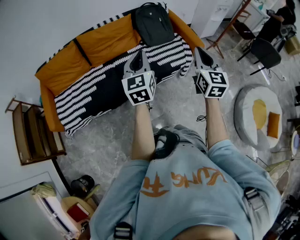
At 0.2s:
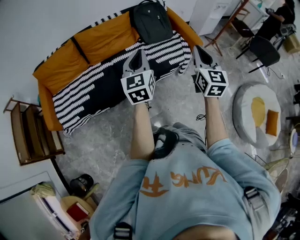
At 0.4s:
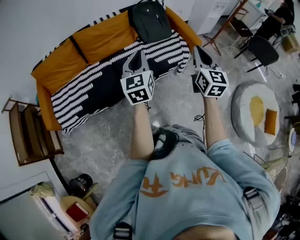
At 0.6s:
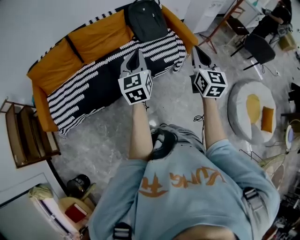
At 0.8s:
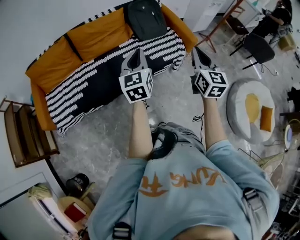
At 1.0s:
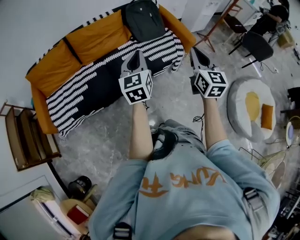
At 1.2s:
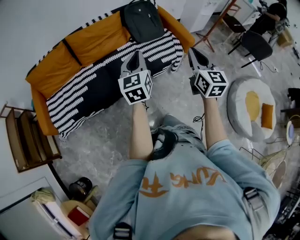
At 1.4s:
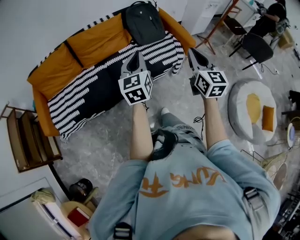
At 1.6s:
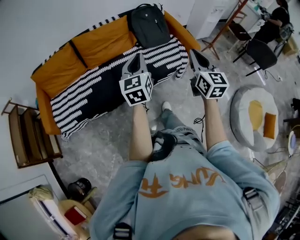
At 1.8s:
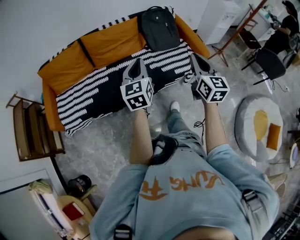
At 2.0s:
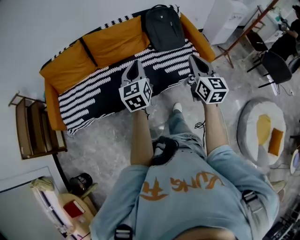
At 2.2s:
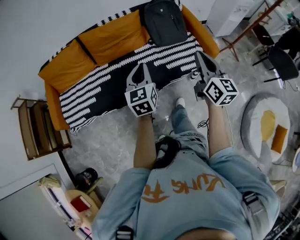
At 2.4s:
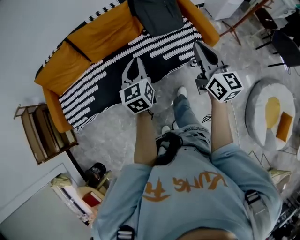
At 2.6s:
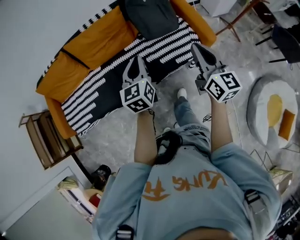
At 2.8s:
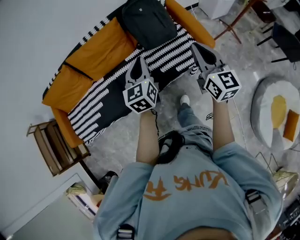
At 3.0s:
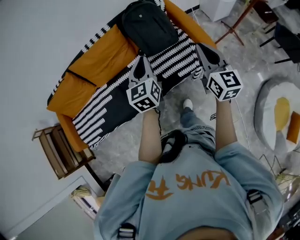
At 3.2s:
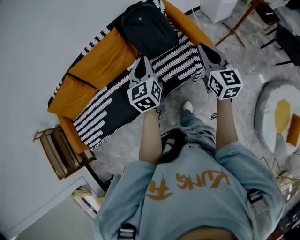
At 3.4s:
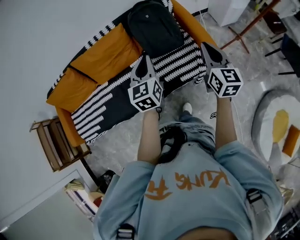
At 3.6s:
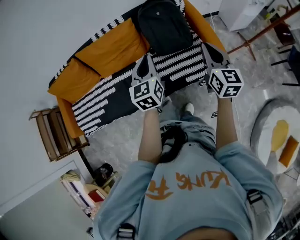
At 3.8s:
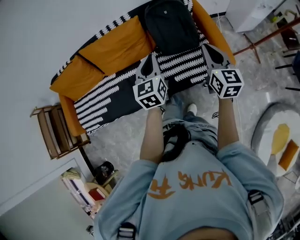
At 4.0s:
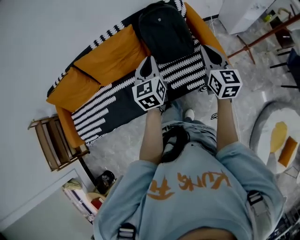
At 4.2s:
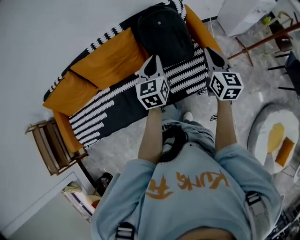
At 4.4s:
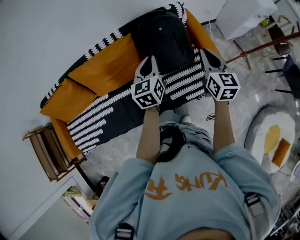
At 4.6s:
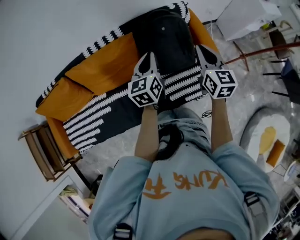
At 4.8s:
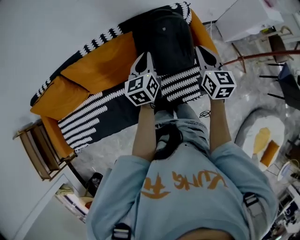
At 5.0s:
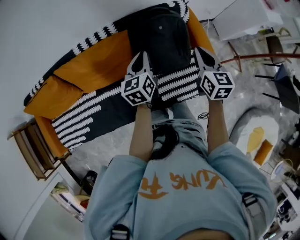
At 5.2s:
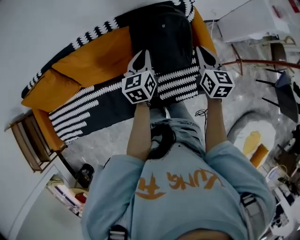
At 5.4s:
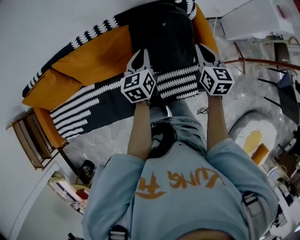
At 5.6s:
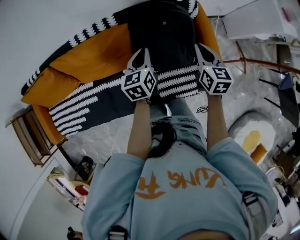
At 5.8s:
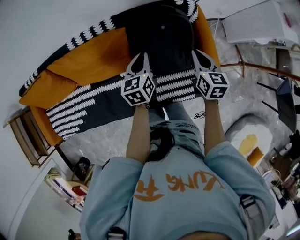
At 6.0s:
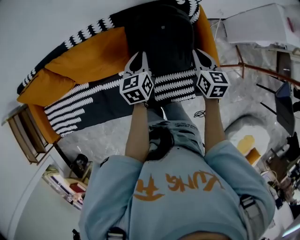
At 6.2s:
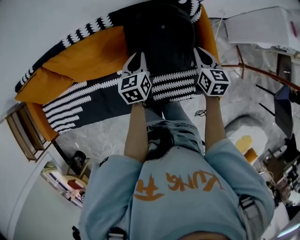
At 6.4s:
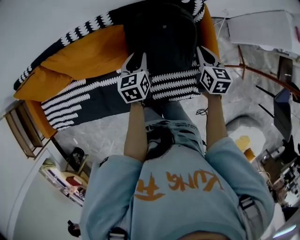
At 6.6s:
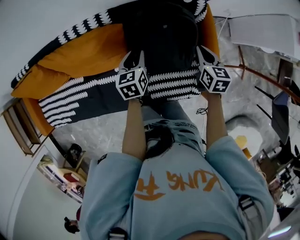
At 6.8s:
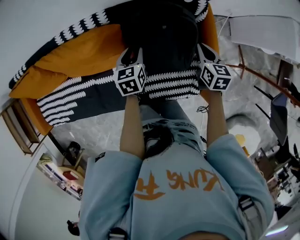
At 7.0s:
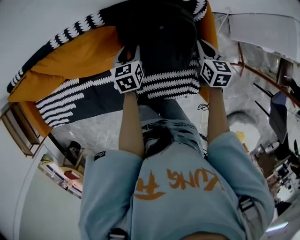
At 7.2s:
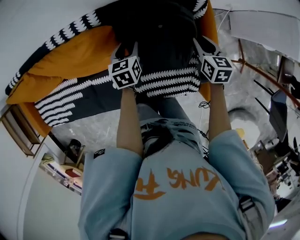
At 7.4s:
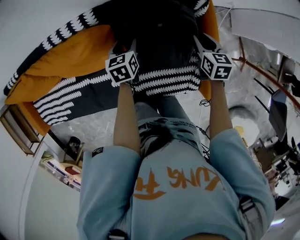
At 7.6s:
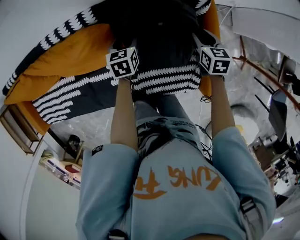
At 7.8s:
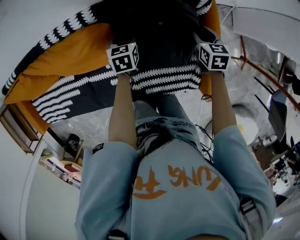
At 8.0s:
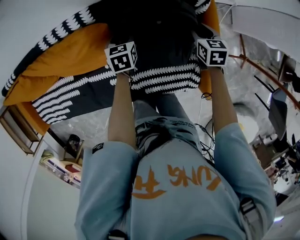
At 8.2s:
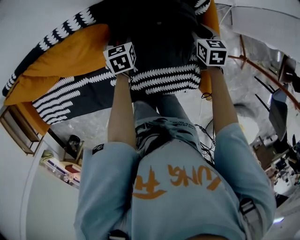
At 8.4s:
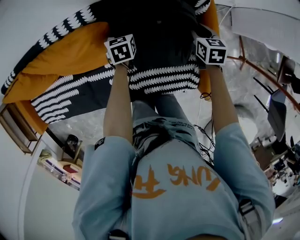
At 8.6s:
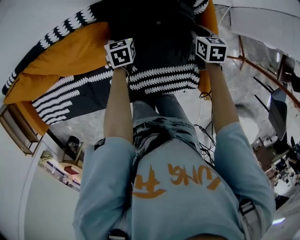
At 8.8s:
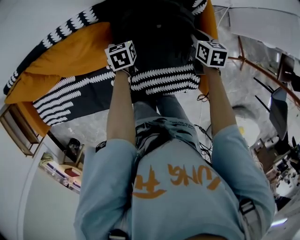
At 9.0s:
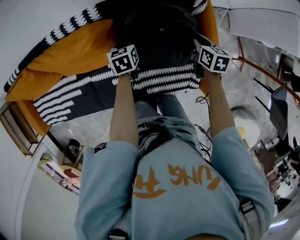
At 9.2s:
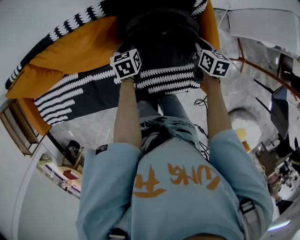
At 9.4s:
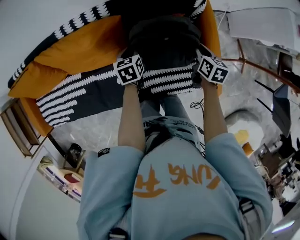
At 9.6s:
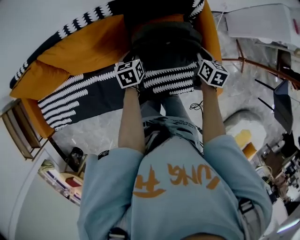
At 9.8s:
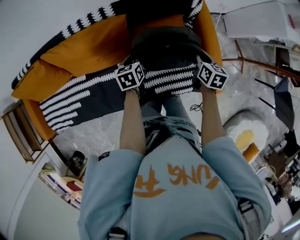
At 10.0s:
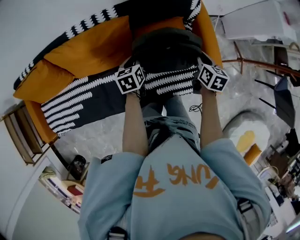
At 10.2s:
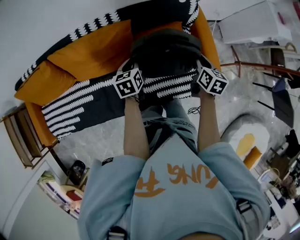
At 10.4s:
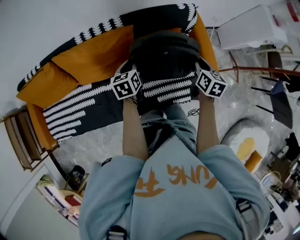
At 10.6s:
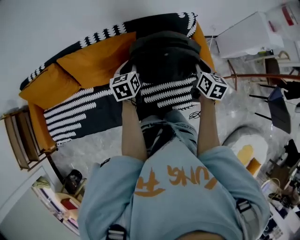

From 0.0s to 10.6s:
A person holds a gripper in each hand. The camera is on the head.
From 0.0s to 1.6s: There are only small adjustments of the grippers.
From 1.6s to 3.0s: Both grippers move forward and to the right, approximately 35 cm.
From 3.0s to 4.6s: The grippers both shift forward by some 30 cm.
From 4.6s to 6.0s: Both grippers move downward and forward, approximately 15 cm.
From 6.0s to 7.6s: Both grippers travel together downward and forward, some 20 cm. The left gripper changes its angle by approximately 20 degrees, and opens. Meanwhile the right gripper opens.
From 7.6s to 9.0s: The right gripper changes place by some 5 cm; the left gripper ends up roughly 5 cm from where it was, and closes up.
From 9.0s to 10.6s: Both grippers move upward and backward, approximately 25 cm. The right gripper rotates about 20 degrees.

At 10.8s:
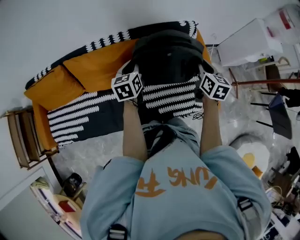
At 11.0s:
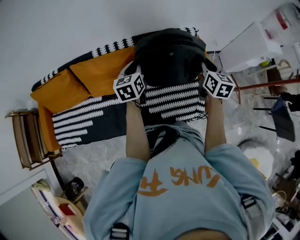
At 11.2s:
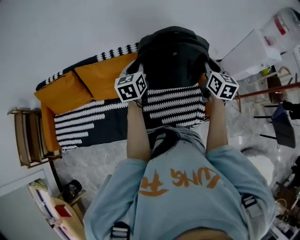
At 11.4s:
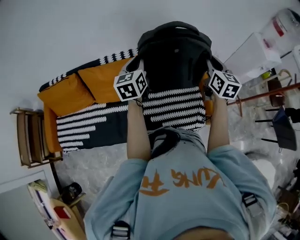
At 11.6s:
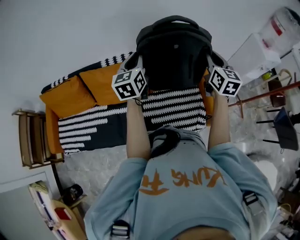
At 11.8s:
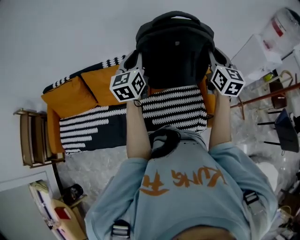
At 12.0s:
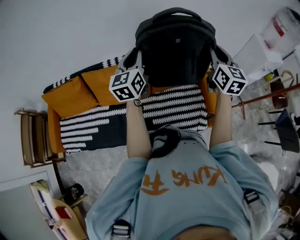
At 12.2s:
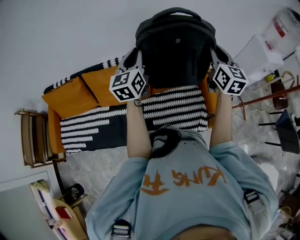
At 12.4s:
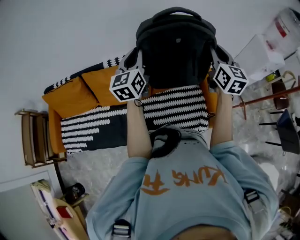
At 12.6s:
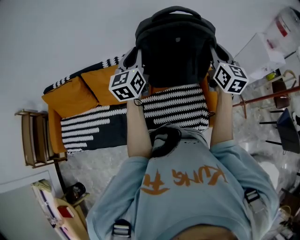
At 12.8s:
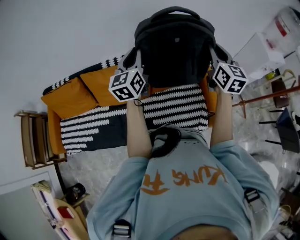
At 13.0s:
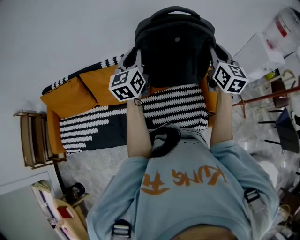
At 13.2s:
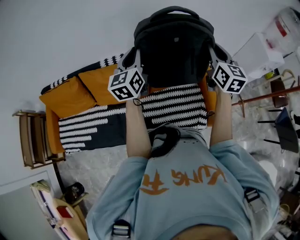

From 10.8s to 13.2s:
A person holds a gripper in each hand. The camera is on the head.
From 10.8s to 12.0s: Both grippers move upward, approximately 20 cm. The left gripper turns by approximately 30 degrees. Meanwhile the right gripper swivels roughly 30 degrees.
From 12.0s to 13.2s: The grippers stay close to where they were, moving slightly.

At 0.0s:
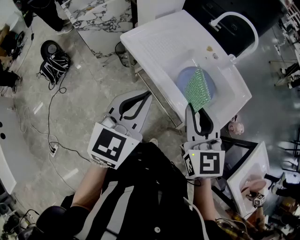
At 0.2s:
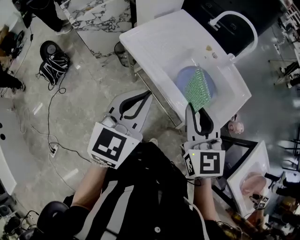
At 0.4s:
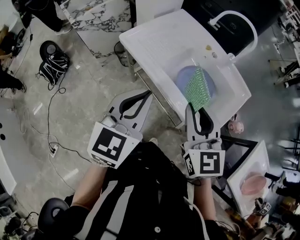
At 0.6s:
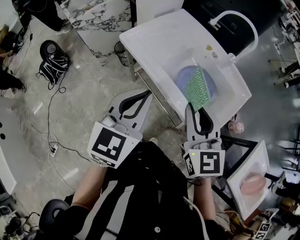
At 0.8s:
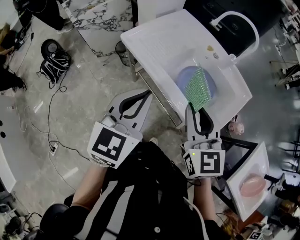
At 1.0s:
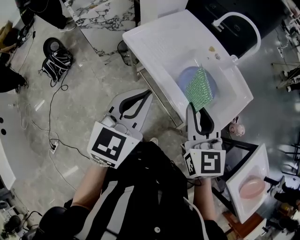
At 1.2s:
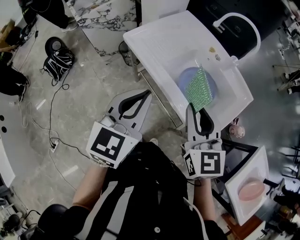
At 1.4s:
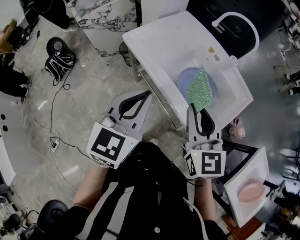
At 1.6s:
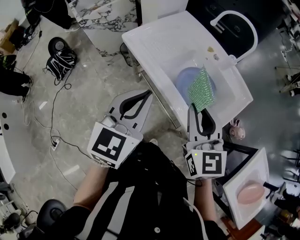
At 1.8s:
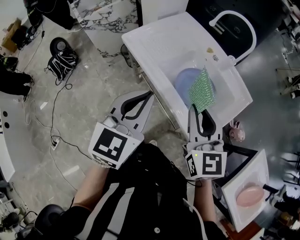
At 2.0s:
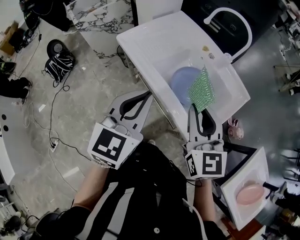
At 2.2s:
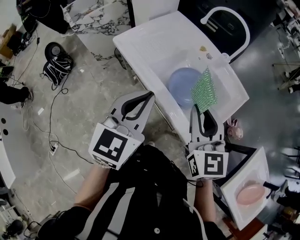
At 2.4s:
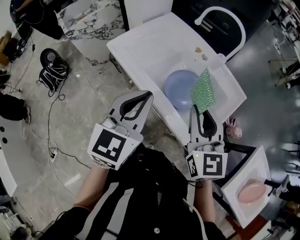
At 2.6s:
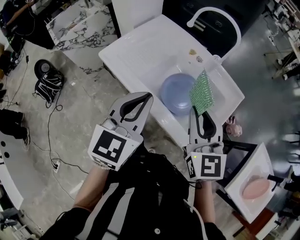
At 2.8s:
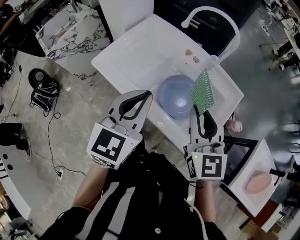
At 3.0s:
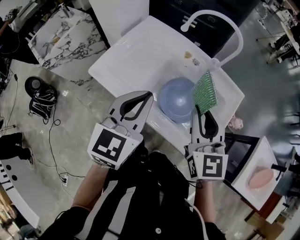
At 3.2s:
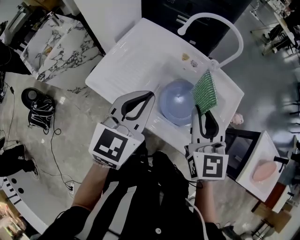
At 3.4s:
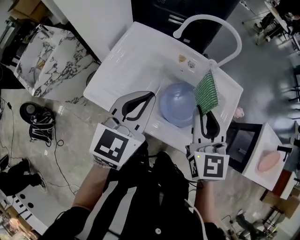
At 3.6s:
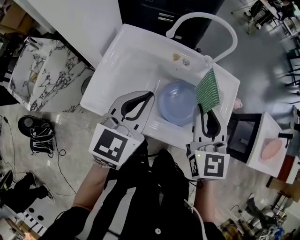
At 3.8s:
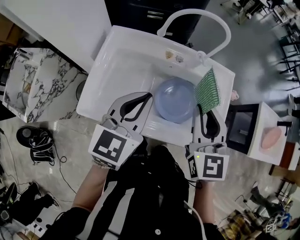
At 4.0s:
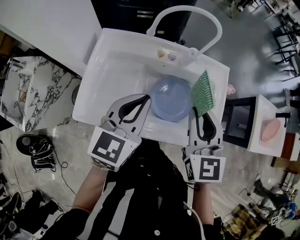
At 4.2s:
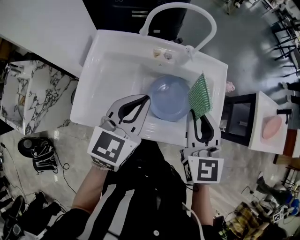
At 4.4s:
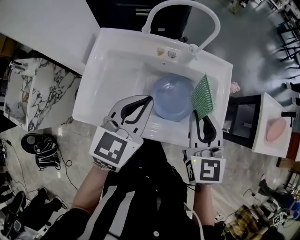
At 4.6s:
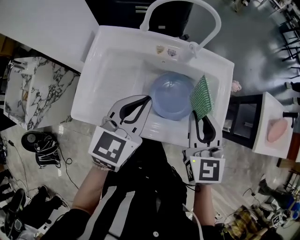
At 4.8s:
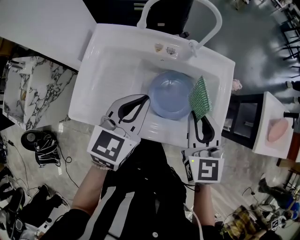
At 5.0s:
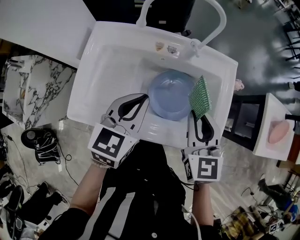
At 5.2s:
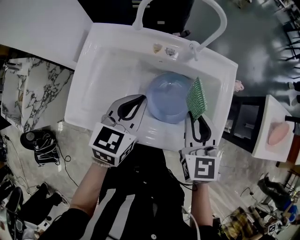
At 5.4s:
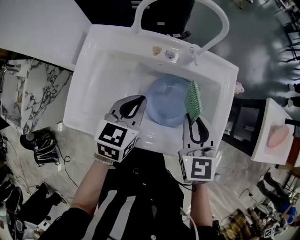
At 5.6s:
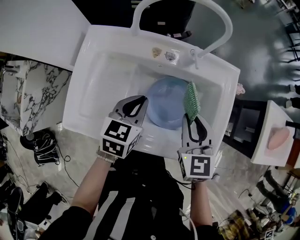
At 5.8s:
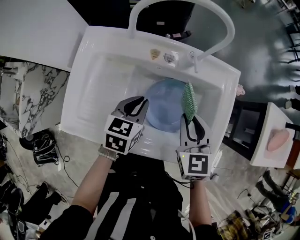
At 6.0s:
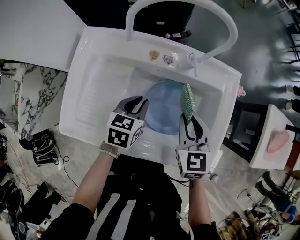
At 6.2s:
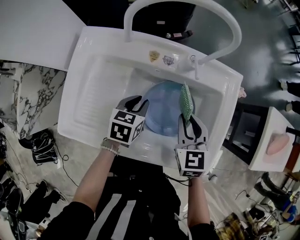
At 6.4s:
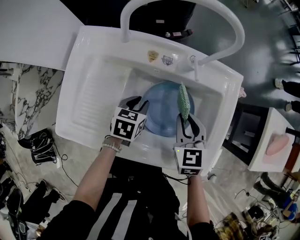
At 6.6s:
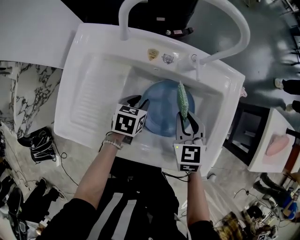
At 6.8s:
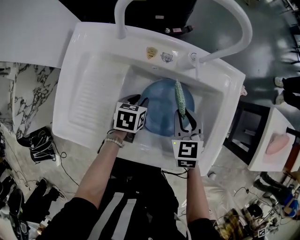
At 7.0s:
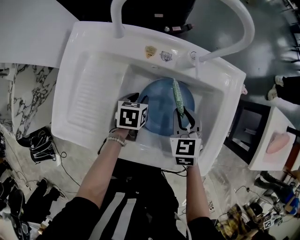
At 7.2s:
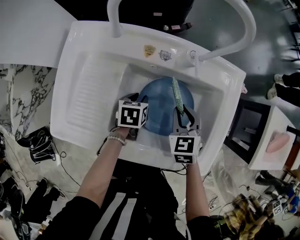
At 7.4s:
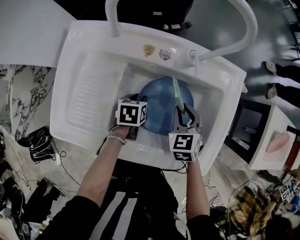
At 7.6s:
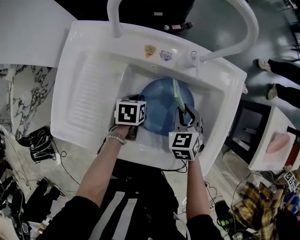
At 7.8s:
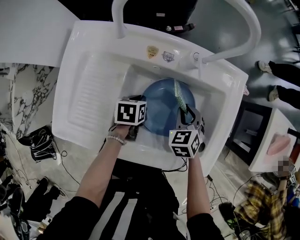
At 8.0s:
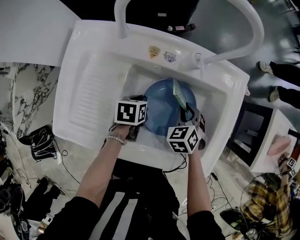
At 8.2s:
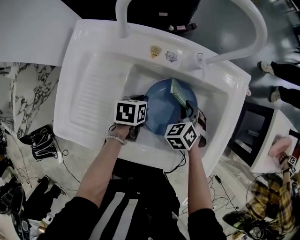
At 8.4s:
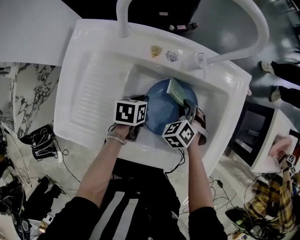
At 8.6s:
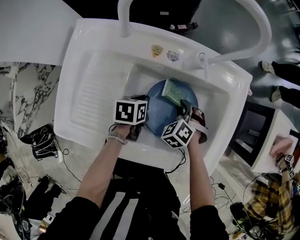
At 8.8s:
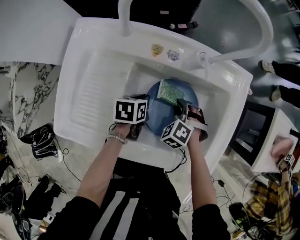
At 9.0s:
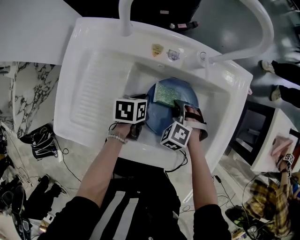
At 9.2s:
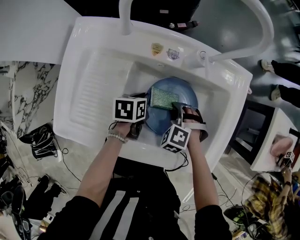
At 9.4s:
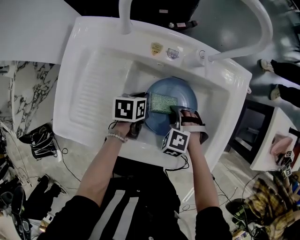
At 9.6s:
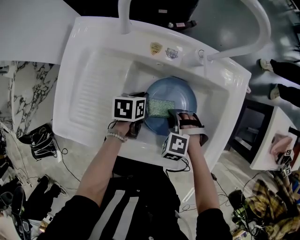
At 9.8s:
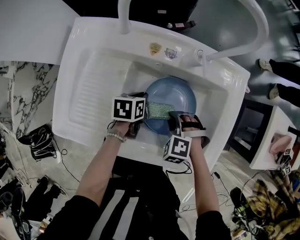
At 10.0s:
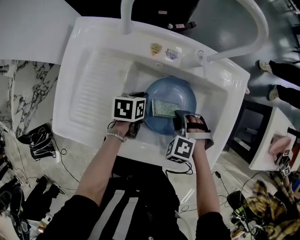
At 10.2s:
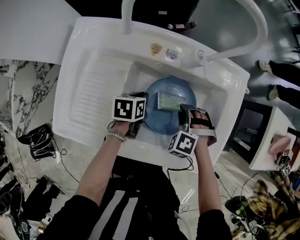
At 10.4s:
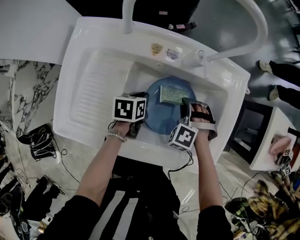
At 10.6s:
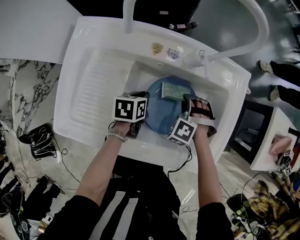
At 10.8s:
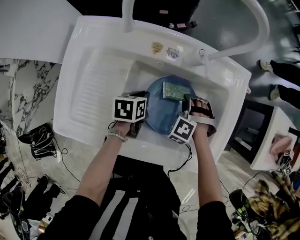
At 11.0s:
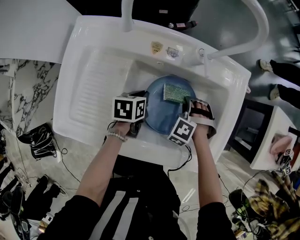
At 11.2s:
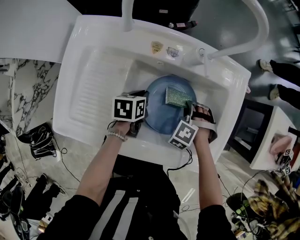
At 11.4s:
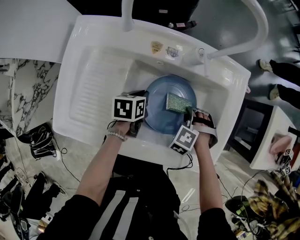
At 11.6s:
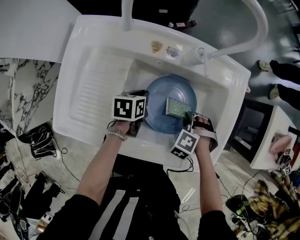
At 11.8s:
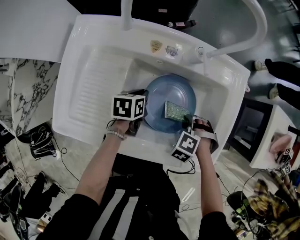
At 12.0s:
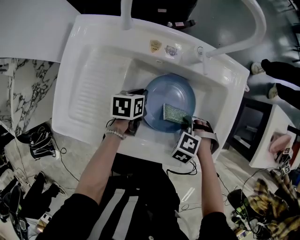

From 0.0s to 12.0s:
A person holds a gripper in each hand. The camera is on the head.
From 0.0s to 1.6s: The grippers make only small movements.
From 1.6s to 3.0s: Both grippers move forward, roughly 15 cm.
From 3.0s to 4.4s: The left gripper changes place by approximately 10 cm, and rotates about 30 degrees. The right gripper shifts by roughly 5 cm, and changes its angle by about 30 degrees.
From 4.4s to 6.0s: The left gripper goes about 20 cm downward, and turns by approximately 30 degrees, while the right gripper heads downward and forward, covering about 15 cm.
From 6.0s to 7.6s: Both grippers travel together downward, approximately 15 cm. The left gripper turns by roughly 30 degrees, while the right gripper turns by about 20 degrees.
From 7.6s to 9.0s: The right gripper moves downward, approximately 5 cm, and twists some 40 degrees counterclockwise, seen from behind.
From 9.0s to 10.4s: The right gripper travels backward and back again, approximately 5 cm each way.
From 10.4s to 12.0s: The right gripper shifts by roughly 10 cm, and swivels some 20 degrees.
